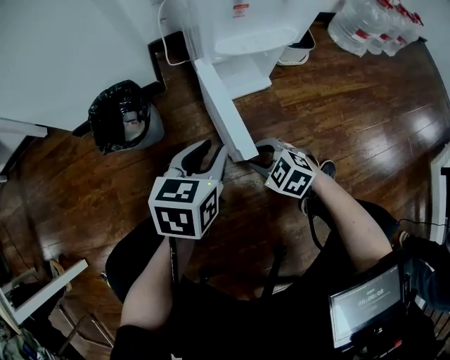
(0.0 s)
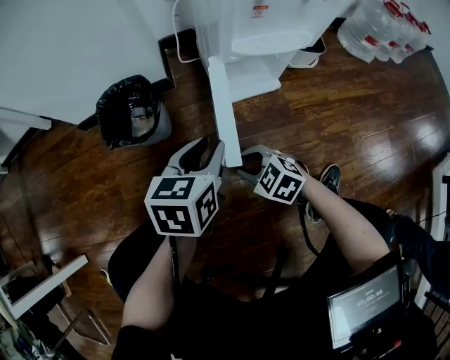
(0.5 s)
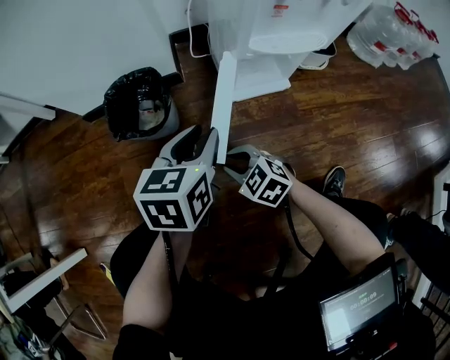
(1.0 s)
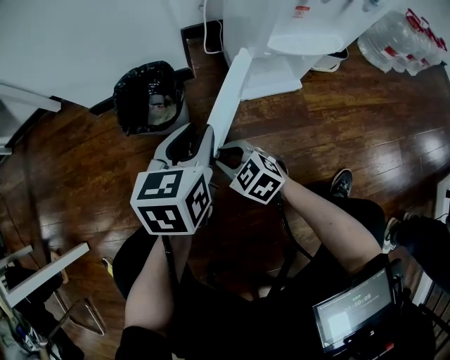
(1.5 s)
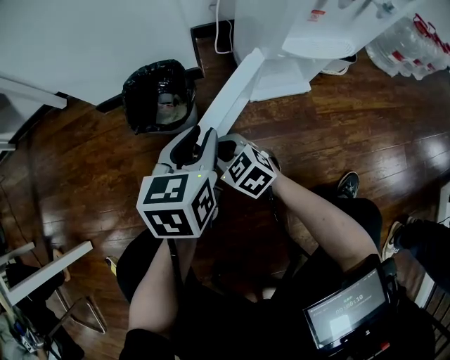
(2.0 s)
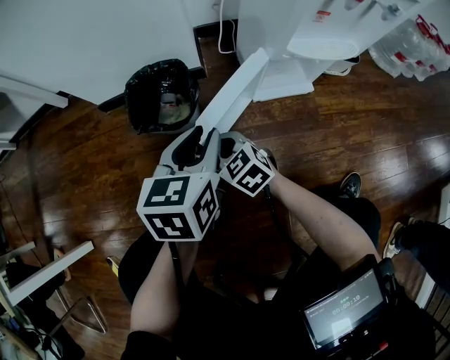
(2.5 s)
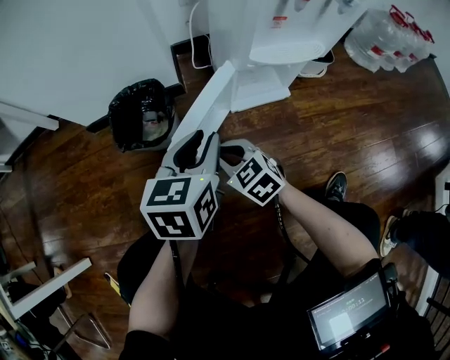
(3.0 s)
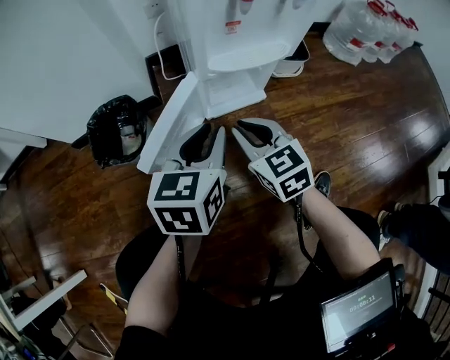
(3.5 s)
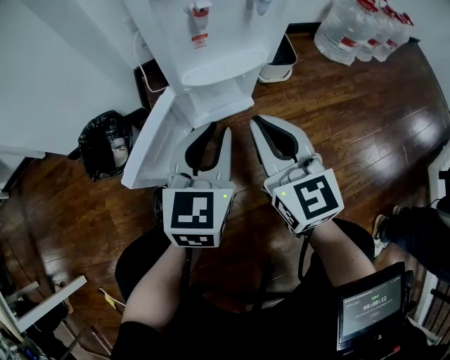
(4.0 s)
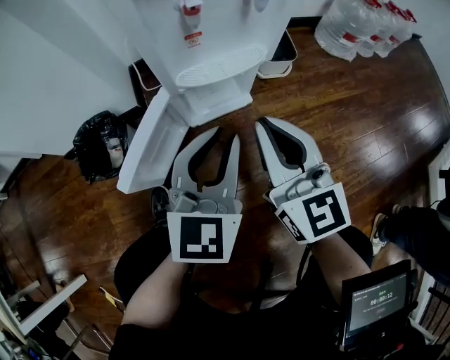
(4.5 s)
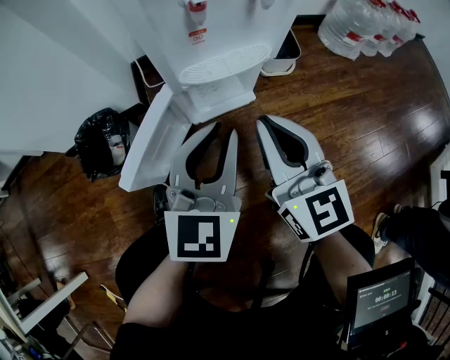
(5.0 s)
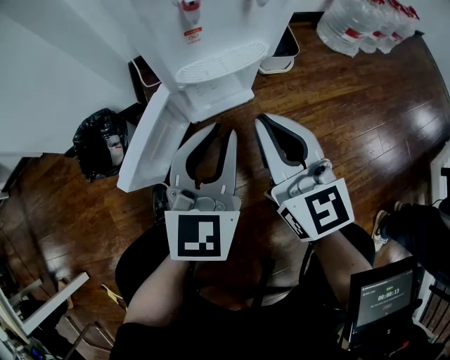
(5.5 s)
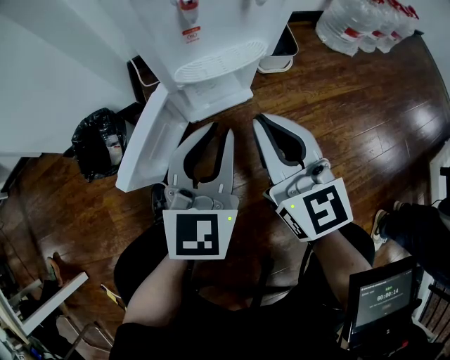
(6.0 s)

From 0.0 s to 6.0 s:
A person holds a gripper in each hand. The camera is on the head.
From 0.0 s to 2.0 s: The left gripper moves to the left and forward, some 15 cm, while the right gripper moves to the left and forward, some 25 cm.
From 2.0 s to 4.0 s: The right gripper shifts about 40 cm to the right and upward, and points its fingers approximately 30 degrees further upward. The left gripper moves to the right, some 25 cm, and turns by approximately 30 degrees.
From 4.0 s to 6.0 s: There are only small adjustments of the grippers.

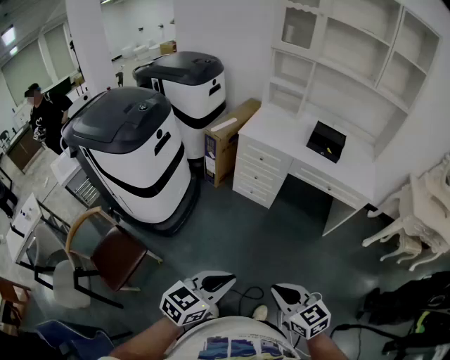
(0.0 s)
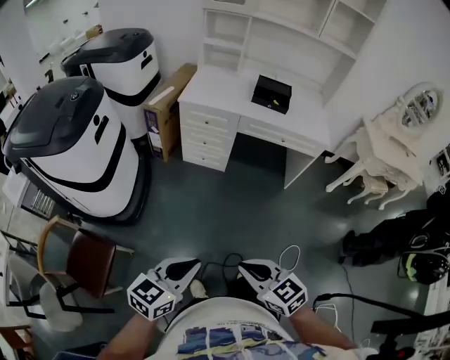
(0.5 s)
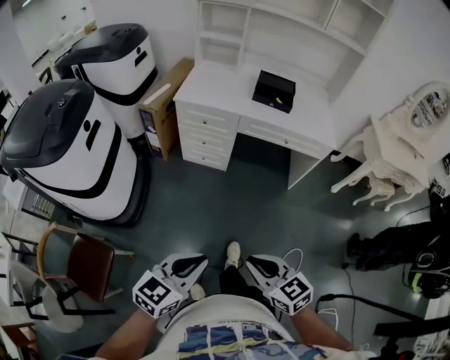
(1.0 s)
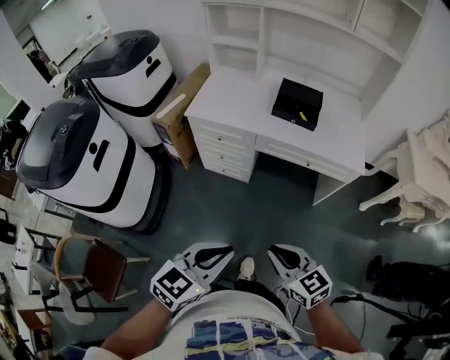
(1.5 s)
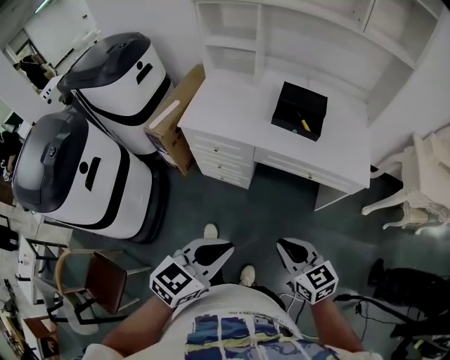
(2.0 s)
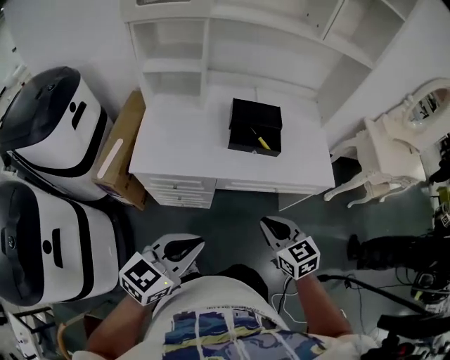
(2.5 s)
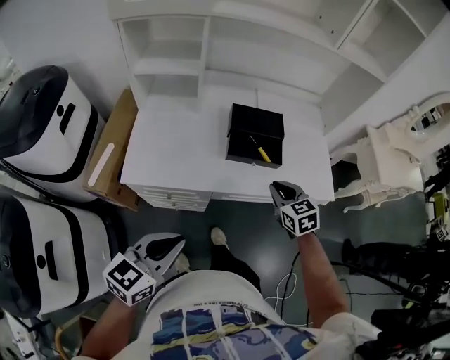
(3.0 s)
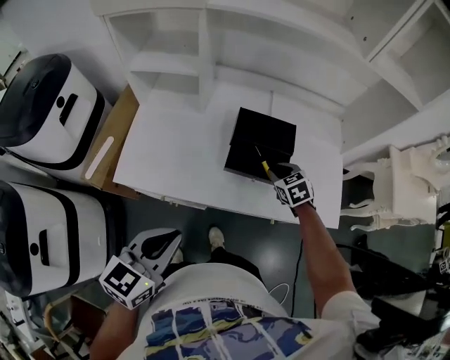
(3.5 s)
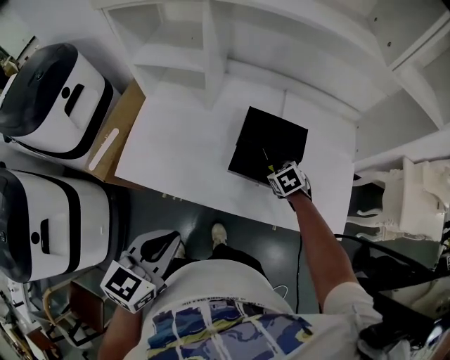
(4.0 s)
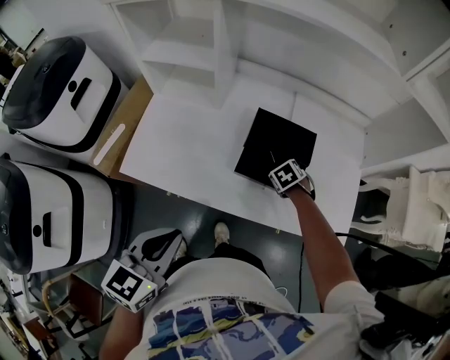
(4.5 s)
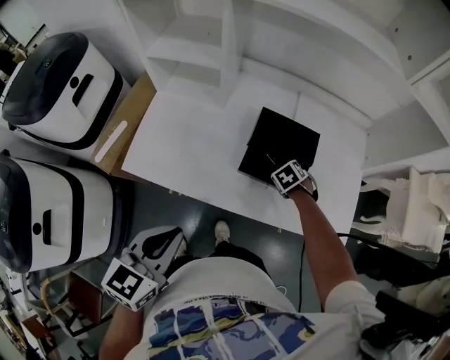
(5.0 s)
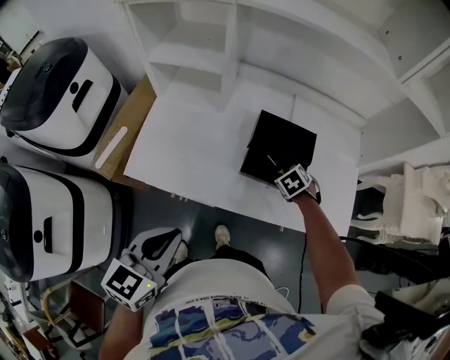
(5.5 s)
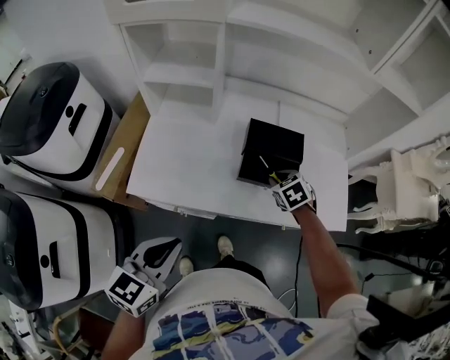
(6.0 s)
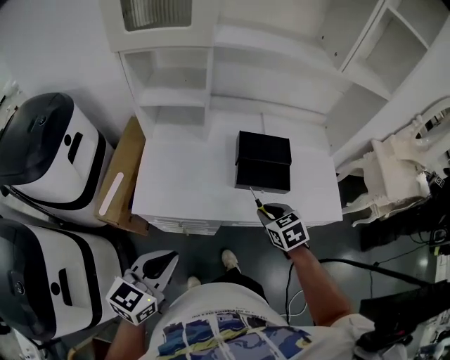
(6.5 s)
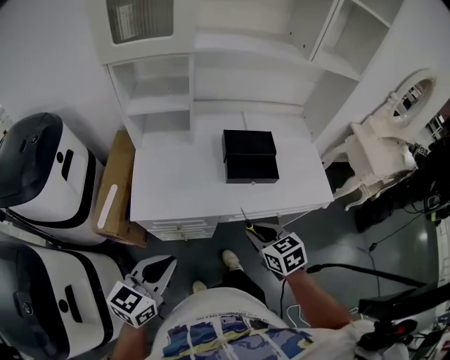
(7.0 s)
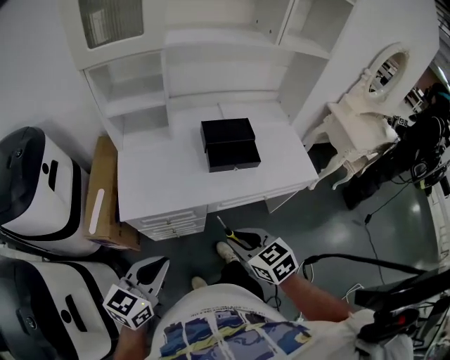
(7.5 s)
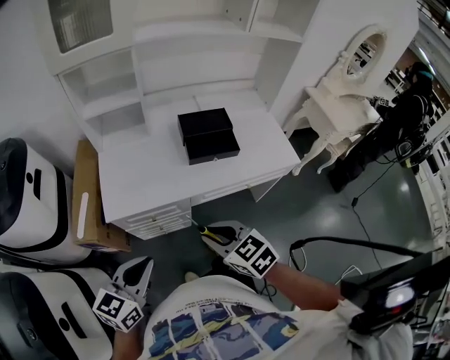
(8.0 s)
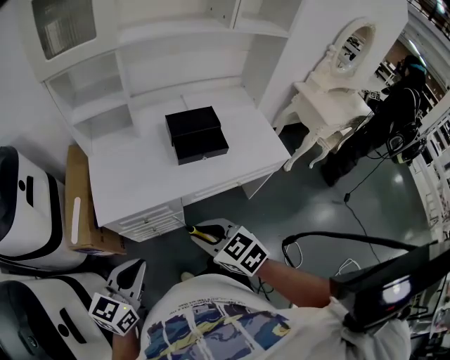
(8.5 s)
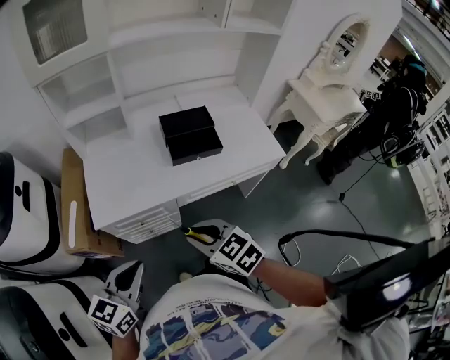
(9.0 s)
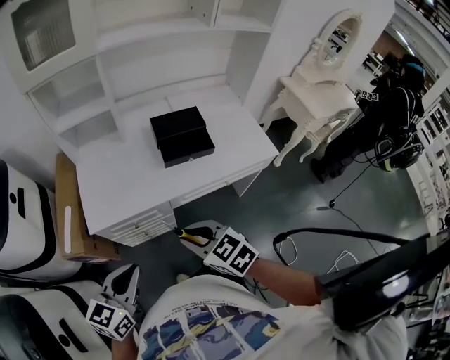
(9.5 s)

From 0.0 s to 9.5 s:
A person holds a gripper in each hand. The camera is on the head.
From 0.0 s to 2.0 s: Both grippers travel together forward, about 35 cm.
From 2.0 s to 4.0 s: The right gripper shifts roughly 50 cm forward, points its fingers roughly 40 degrees further downward, and opens up. Meanwhile the left gripper travels forward by roughly 35 cm.
From 4.0 s to 5.5 s: The grippers move only a little.
From 5.5 s to 7.5 s: The right gripper moves about 40 cm, and tips its fingers upward by roughly 40 degrees. Meanwhile the left gripper shifts by approximately 15 cm, and changes its angle by some 20 degrees.
From 7.5 s to 9.5 s: The grippers make only small movements.

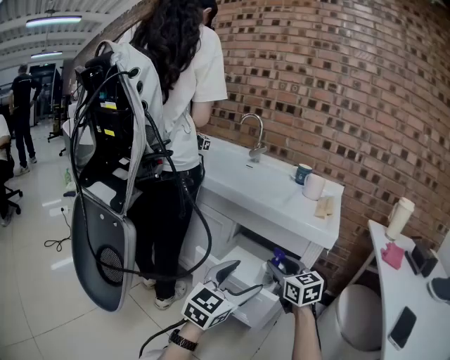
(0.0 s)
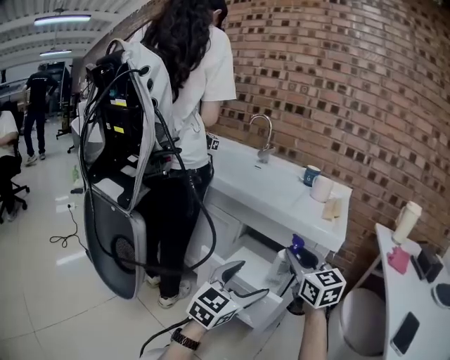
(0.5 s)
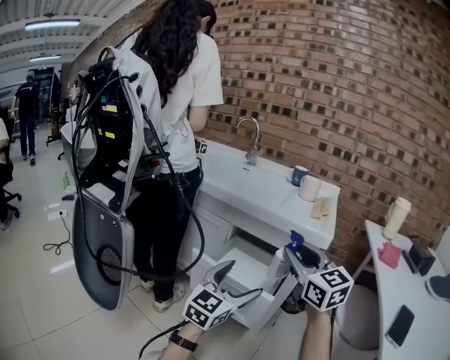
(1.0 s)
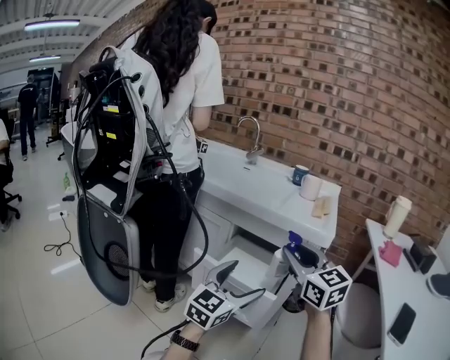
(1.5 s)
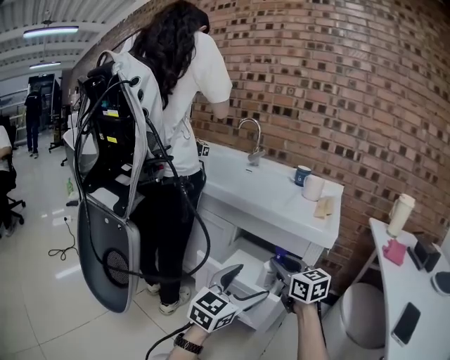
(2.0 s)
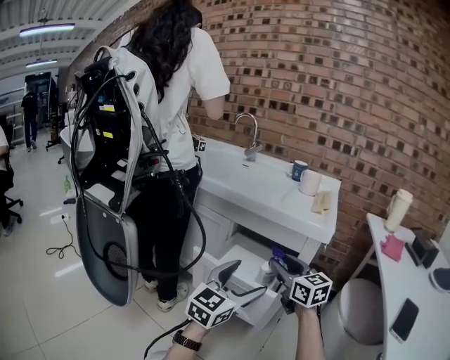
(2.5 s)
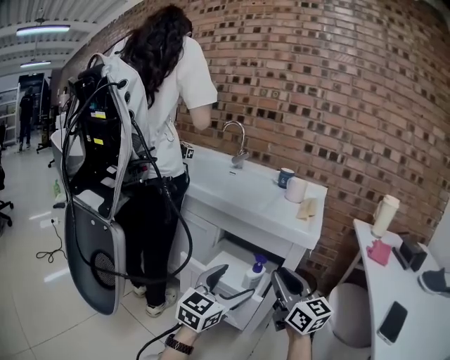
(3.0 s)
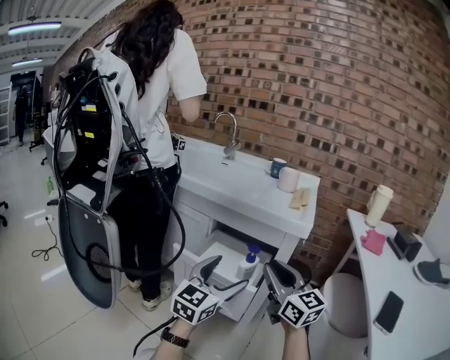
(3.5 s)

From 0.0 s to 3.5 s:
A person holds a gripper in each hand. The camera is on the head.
From 0.0 s to 2.0 s: The right gripper moves about 15 cm upward and comes back.
From 2.0 s to 3.5 s: The right gripper moves backward, approximately 10 cm.

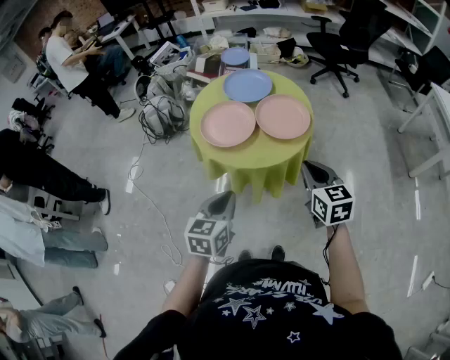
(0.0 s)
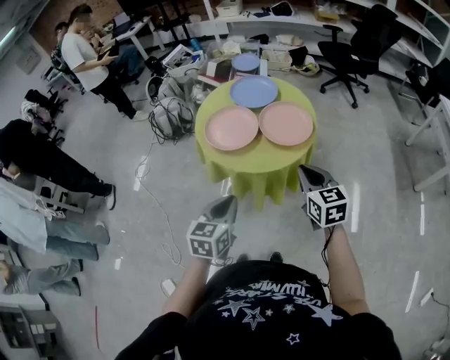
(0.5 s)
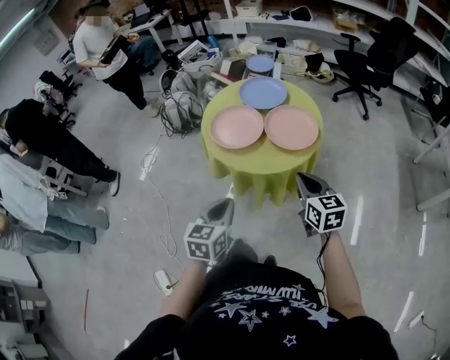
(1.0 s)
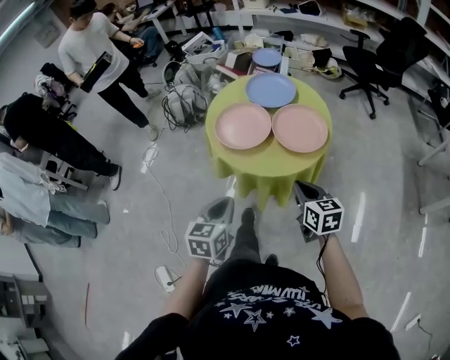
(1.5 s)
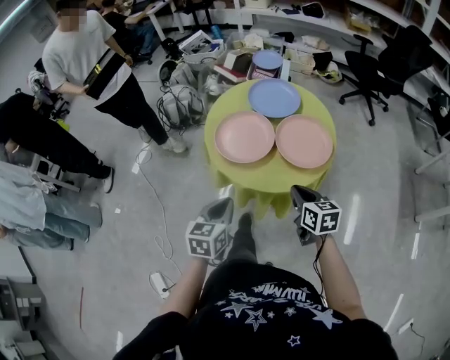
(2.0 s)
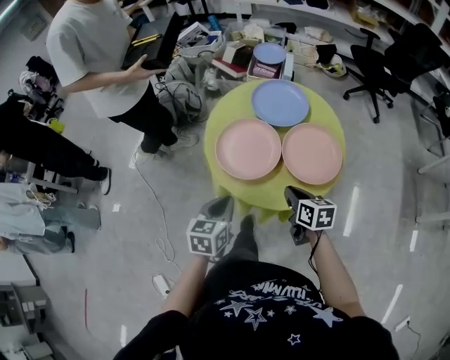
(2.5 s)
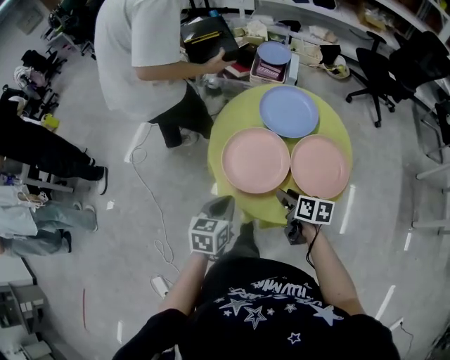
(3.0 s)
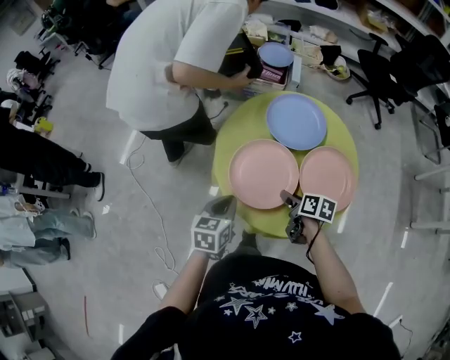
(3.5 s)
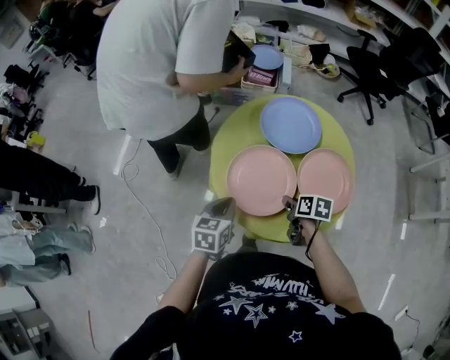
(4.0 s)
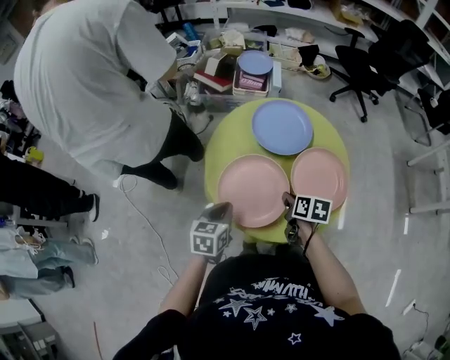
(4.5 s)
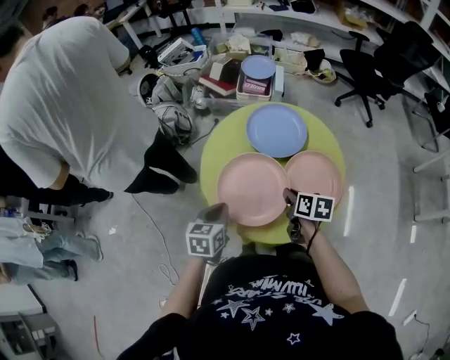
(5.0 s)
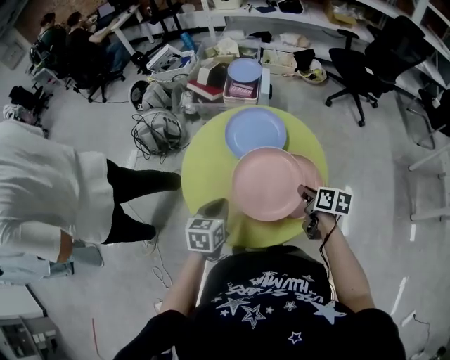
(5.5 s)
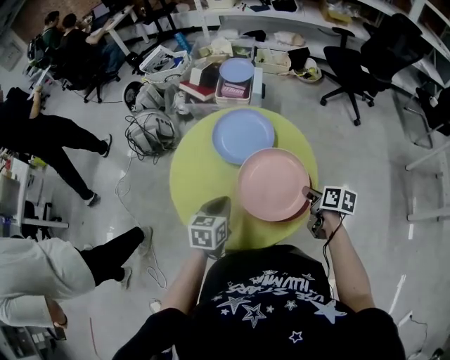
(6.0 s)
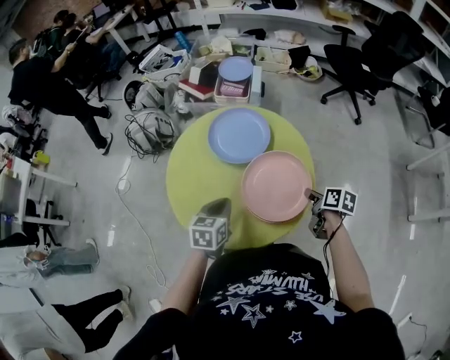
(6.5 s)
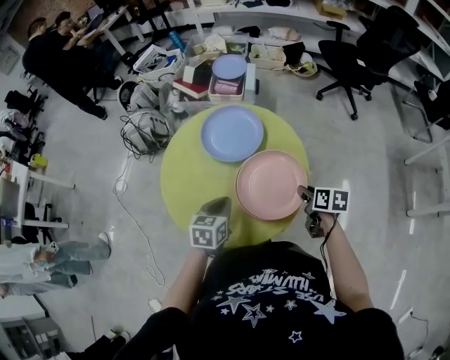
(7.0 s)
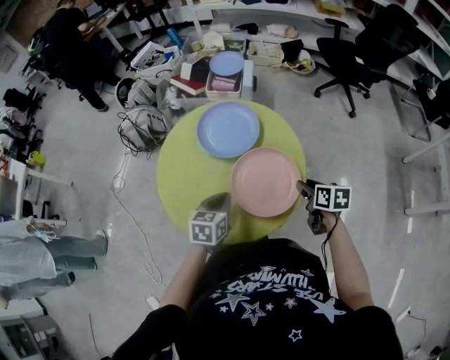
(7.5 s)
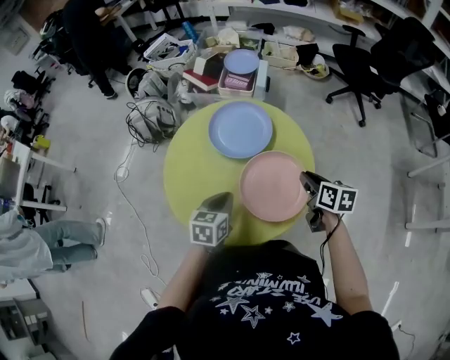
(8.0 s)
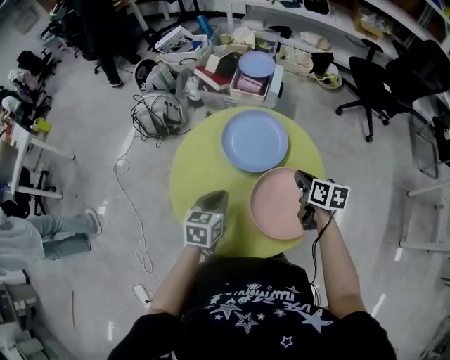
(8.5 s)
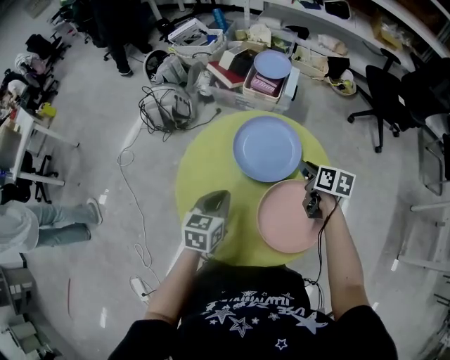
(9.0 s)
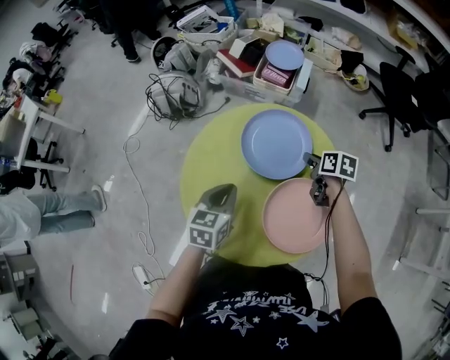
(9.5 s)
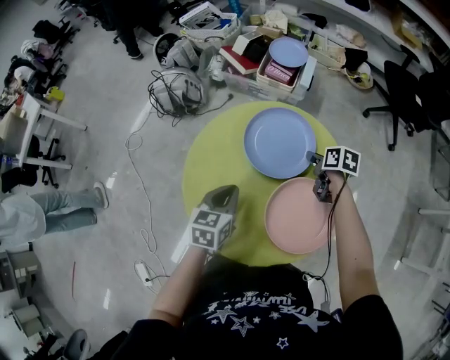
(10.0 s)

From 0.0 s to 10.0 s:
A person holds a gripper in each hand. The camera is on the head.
From 0.0 s to 2.0 s: The right gripper moves downward and forward, about 15 cm, and rotates roughly 20 degrees, while the left gripper heads forward and downward, covering roughly 10 cm.
From 2.0 s to 4.0 s: The left gripper shifts about 20 cm forward, while the right gripper moves forward, downward and to the left, roughly 20 cm, turns by about 40 degrees, and opens, then closes once more.
From 4.0 s to 6.0 s: Both grippers move to the right, approximately 20 cm.
From 6.0 s to 8.0 s: The right gripper shifts by roughly 5 cm.
From 8.0 s to 10.0 s: The right gripper shifts some 20 cm forward and downward, and changes its angle by some 20 degrees; the left gripper shifts about 10 cm forward and to the left.
